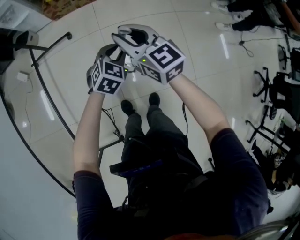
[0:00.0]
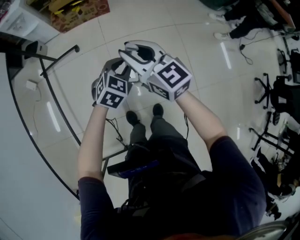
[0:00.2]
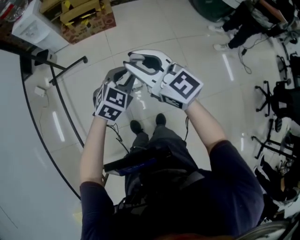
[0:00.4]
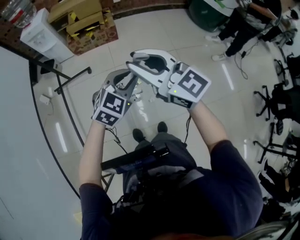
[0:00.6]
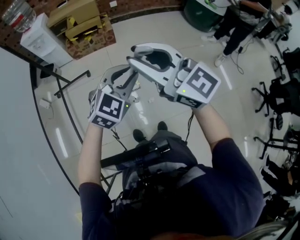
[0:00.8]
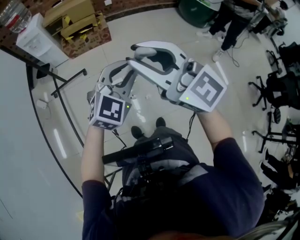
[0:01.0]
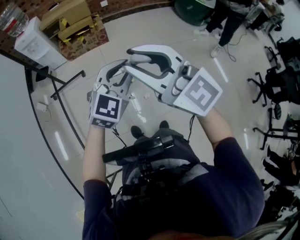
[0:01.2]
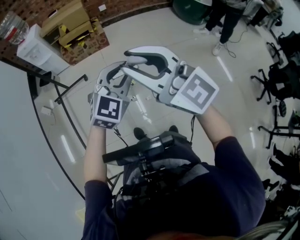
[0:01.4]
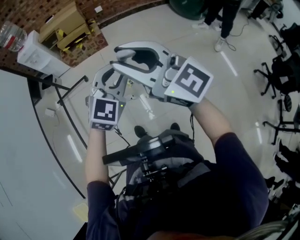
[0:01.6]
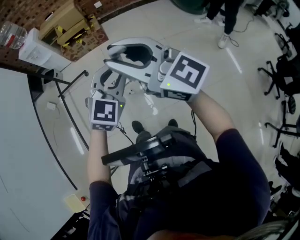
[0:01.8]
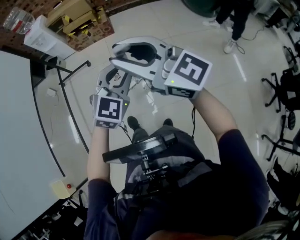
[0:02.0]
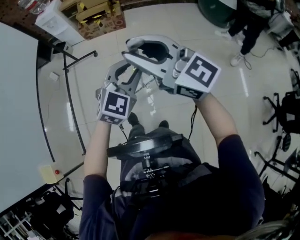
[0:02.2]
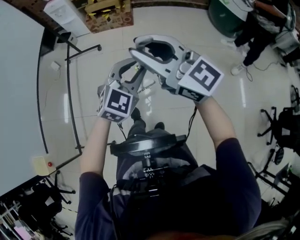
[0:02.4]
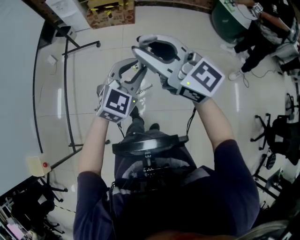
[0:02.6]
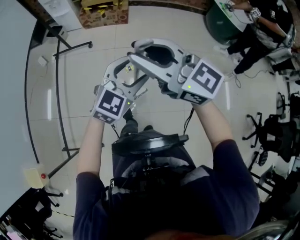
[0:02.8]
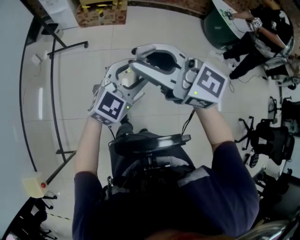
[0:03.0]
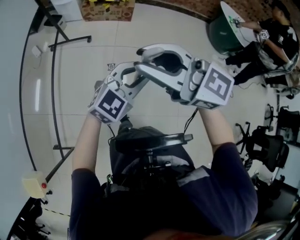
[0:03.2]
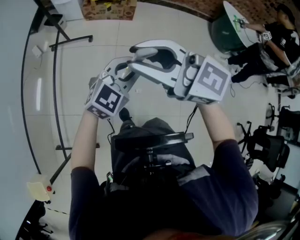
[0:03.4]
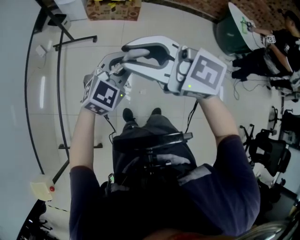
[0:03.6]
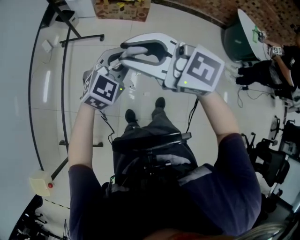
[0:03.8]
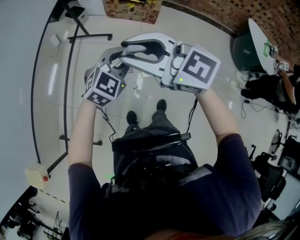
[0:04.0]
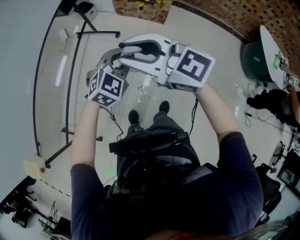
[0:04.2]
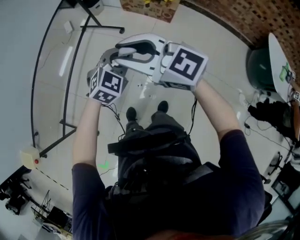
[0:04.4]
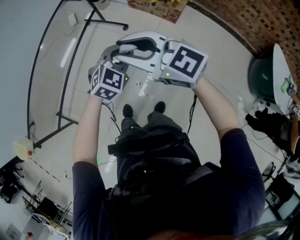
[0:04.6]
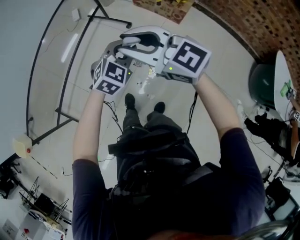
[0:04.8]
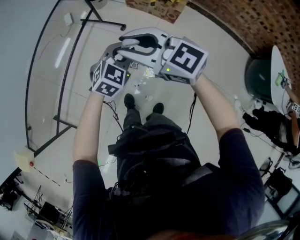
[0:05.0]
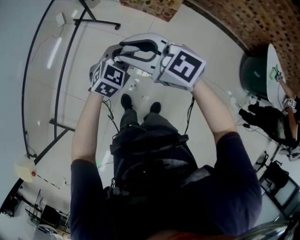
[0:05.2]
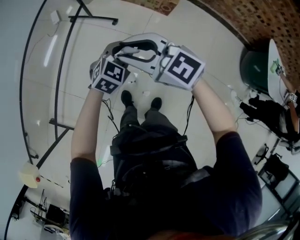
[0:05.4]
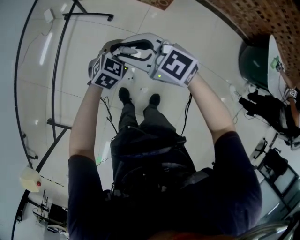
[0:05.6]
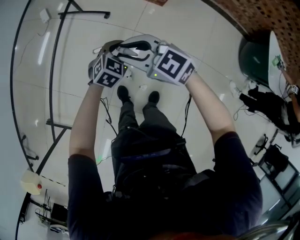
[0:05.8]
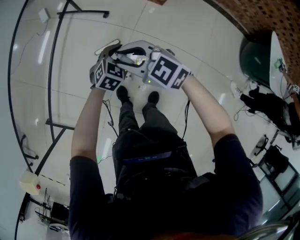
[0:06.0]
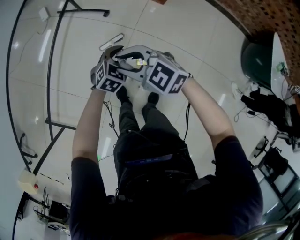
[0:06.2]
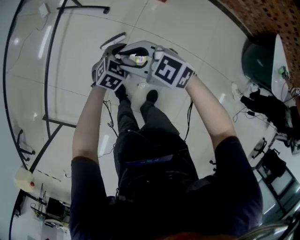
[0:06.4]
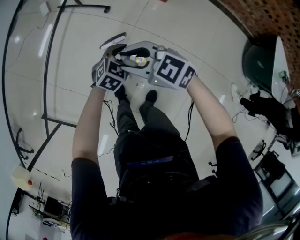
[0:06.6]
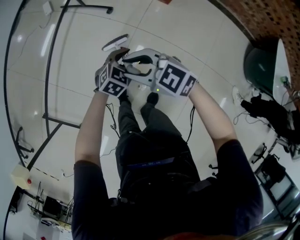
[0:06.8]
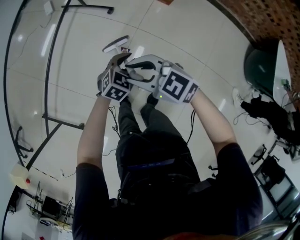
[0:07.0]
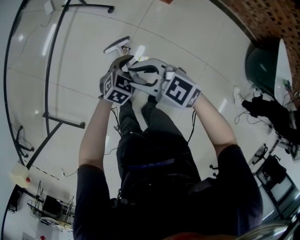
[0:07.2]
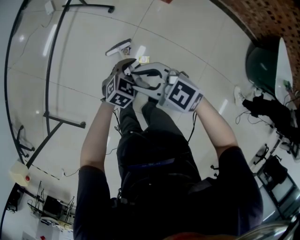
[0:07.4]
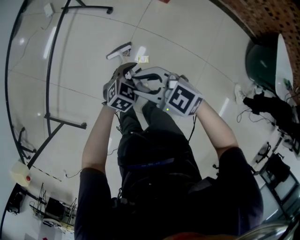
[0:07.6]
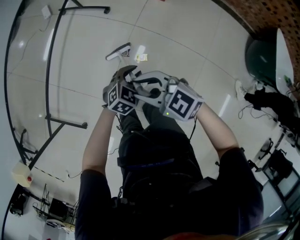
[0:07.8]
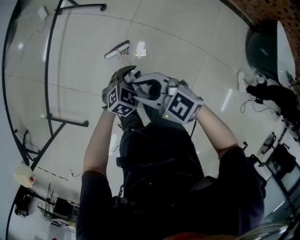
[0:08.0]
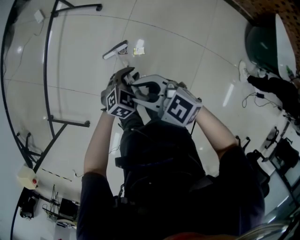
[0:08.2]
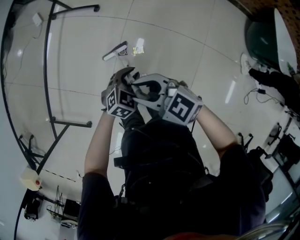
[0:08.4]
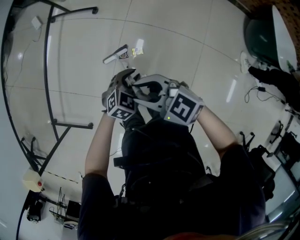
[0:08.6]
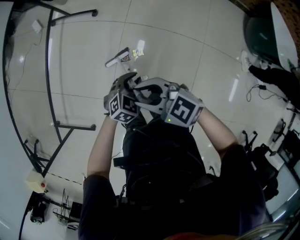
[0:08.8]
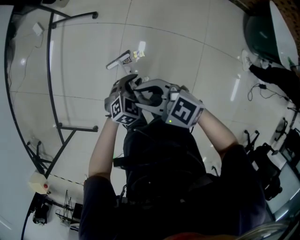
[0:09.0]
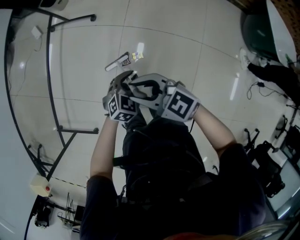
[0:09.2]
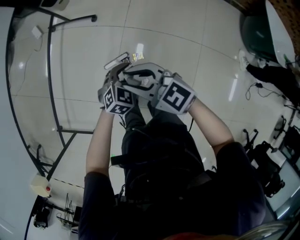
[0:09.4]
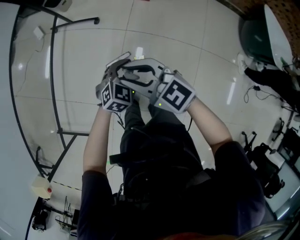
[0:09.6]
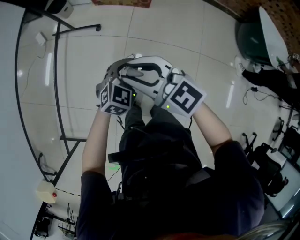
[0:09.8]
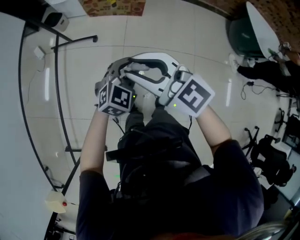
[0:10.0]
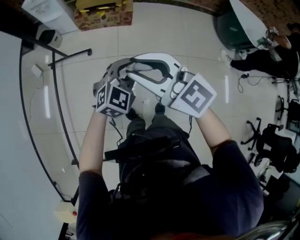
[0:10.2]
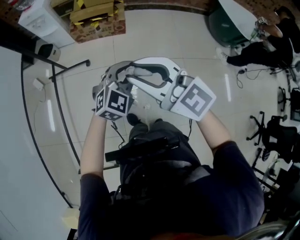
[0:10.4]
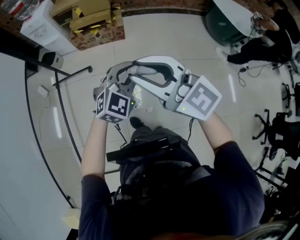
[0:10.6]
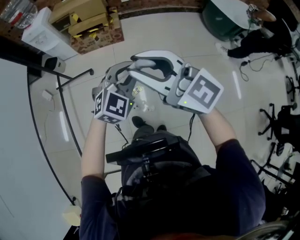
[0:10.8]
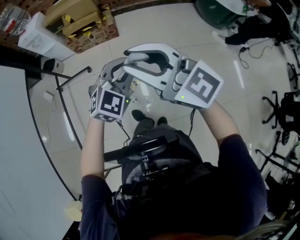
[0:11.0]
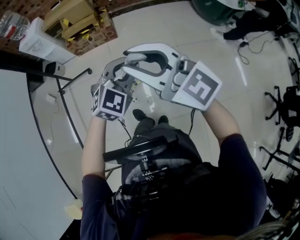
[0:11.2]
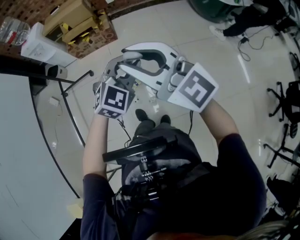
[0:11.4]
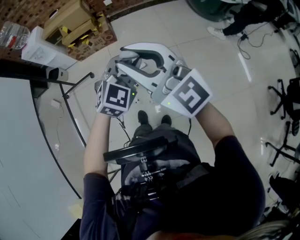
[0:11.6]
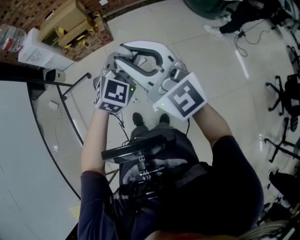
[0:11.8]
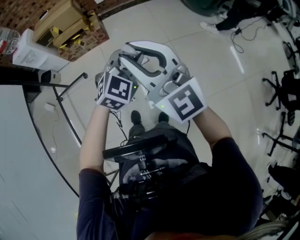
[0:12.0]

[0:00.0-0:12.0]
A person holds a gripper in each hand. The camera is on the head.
0:00.0 to 0:01.6: The grippers both shift upward and backward by about 40 cm. The right gripper changes its angle by about 30 degrees. The left gripper swivels approximately 30 degrees.
0:01.6 to 0:03.0: Both grippers move downward, roughly 5 cm. The right gripper reaches roughly 10 cm to the right, then returns, and swivels approximately 30 degrees. The left gripper travels backward and back again, approximately 10 cm each way, and opens its fingers.
0:03.0 to 0:04.4: The left gripper moves about 30 cm, rotates approximately 40 degrees, and closes its fingers, while the right gripper moves some 25 cm, and swivels roughly 30 degrees.
0:04.4 to 0:06.0: The grippers both shift downward and forward by some 25 cm. The right gripper changes its angle by roughly 20 degrees.
0:06.0 to 0:07.6: Both grippers move backward, some 15 cm.
0:07.6 to 0:09.0: The left gripper ends up about 10 cm from where it was. Meanwhile the right gripper moves about 10 cm.
0:09.0 to 0:10.4: Both grippers move upward, roughly 25 cm. The right gripper rotates roughly 40 degrees. The left gripper turns by some 30 degrees.
0:10.4 to 0:12.0: The left gripper travels to the right and backward by about 25 cm. Meanwhile the right gripper is displaced to the right, backward and upward by approximately 25 cm, and swivels approximately 40 degrees.

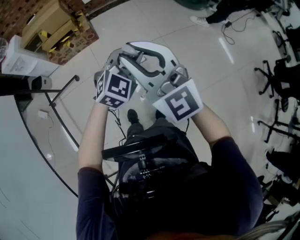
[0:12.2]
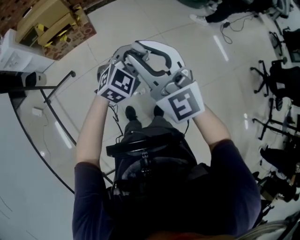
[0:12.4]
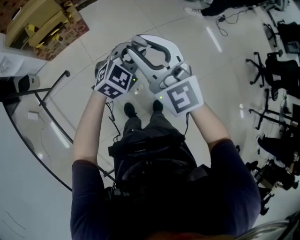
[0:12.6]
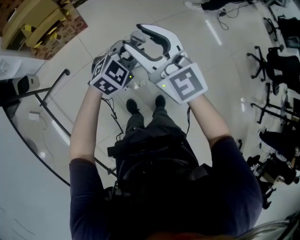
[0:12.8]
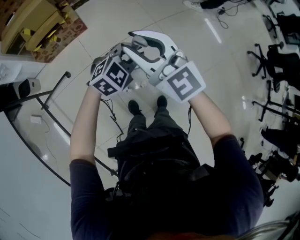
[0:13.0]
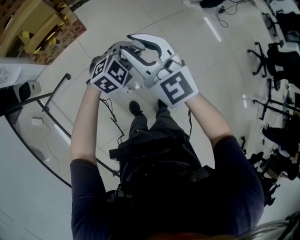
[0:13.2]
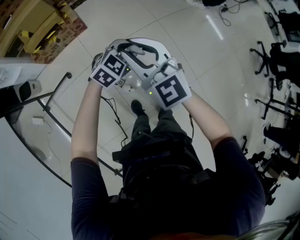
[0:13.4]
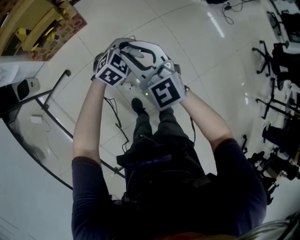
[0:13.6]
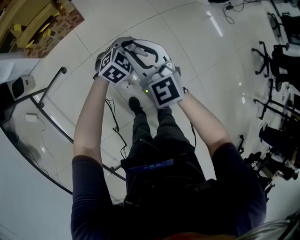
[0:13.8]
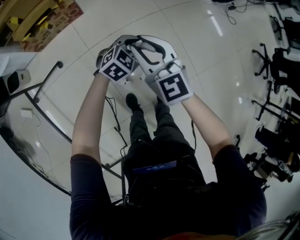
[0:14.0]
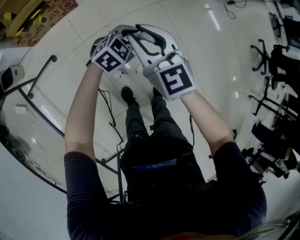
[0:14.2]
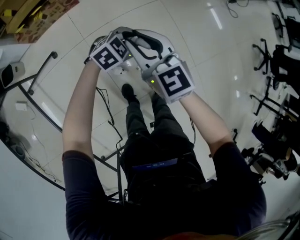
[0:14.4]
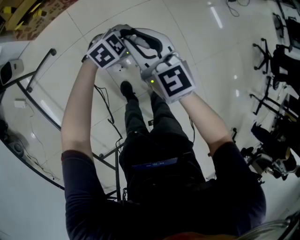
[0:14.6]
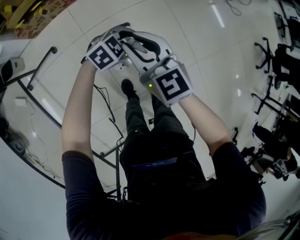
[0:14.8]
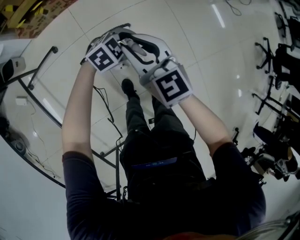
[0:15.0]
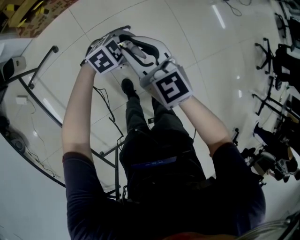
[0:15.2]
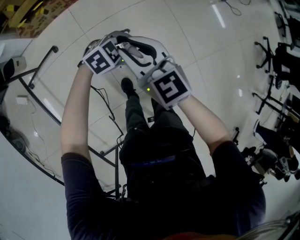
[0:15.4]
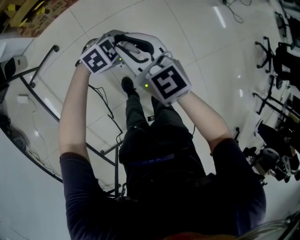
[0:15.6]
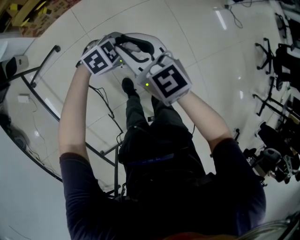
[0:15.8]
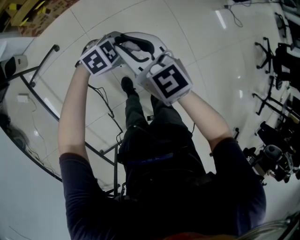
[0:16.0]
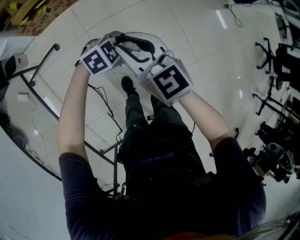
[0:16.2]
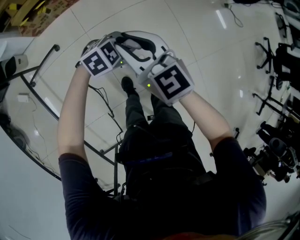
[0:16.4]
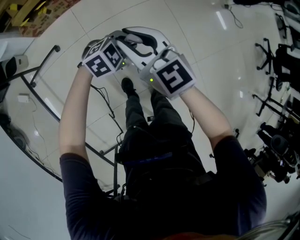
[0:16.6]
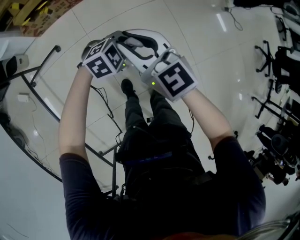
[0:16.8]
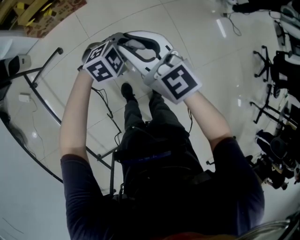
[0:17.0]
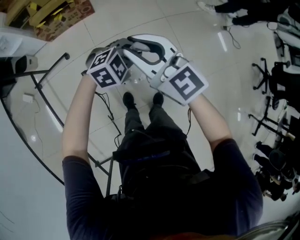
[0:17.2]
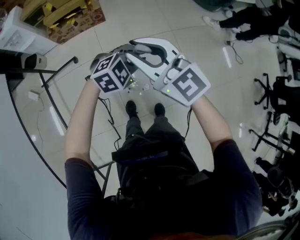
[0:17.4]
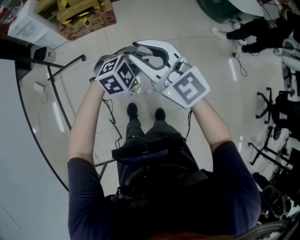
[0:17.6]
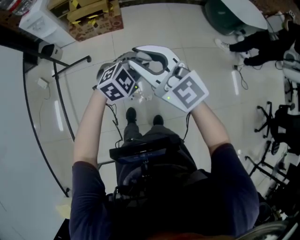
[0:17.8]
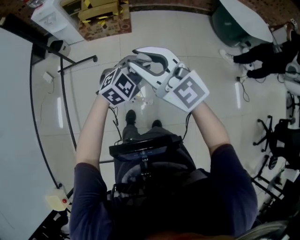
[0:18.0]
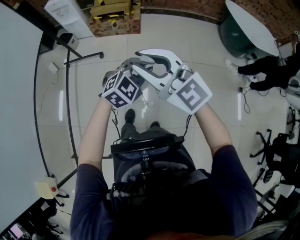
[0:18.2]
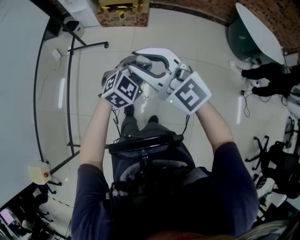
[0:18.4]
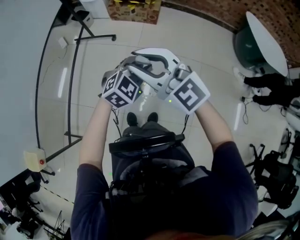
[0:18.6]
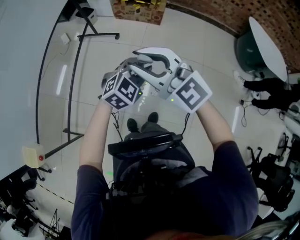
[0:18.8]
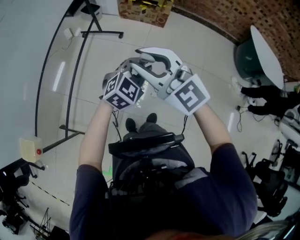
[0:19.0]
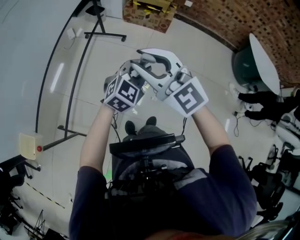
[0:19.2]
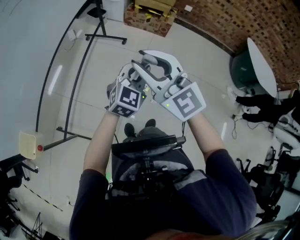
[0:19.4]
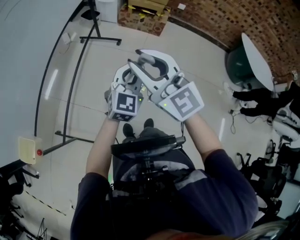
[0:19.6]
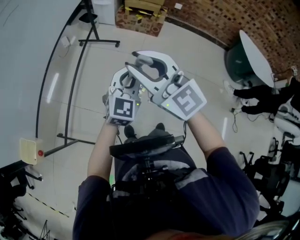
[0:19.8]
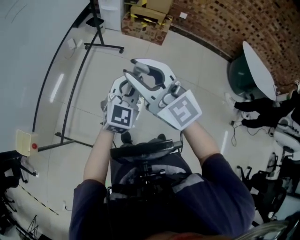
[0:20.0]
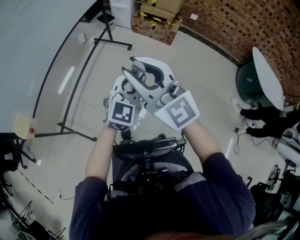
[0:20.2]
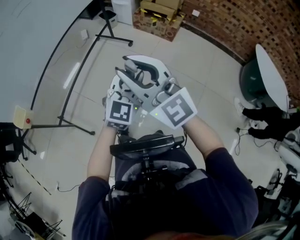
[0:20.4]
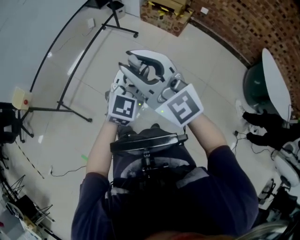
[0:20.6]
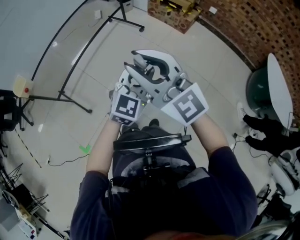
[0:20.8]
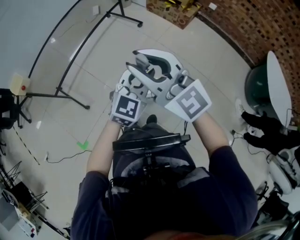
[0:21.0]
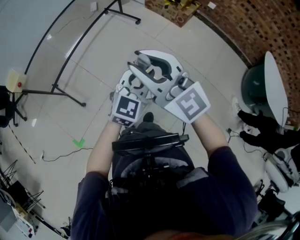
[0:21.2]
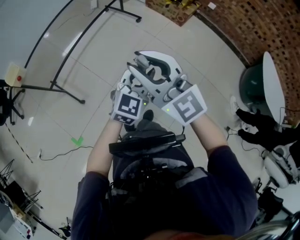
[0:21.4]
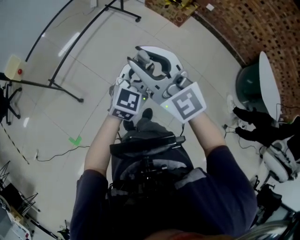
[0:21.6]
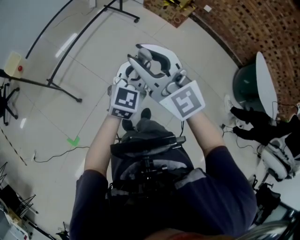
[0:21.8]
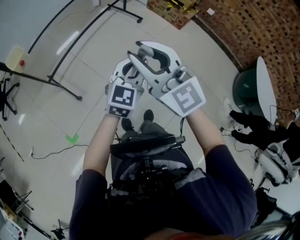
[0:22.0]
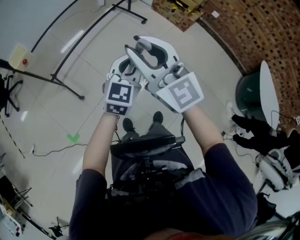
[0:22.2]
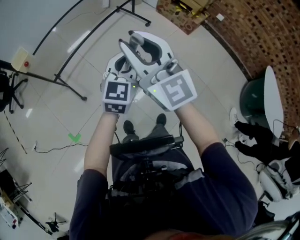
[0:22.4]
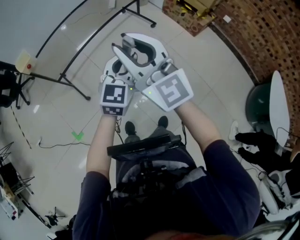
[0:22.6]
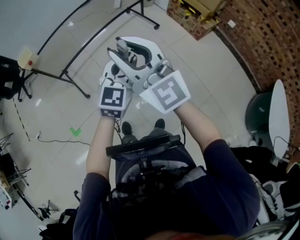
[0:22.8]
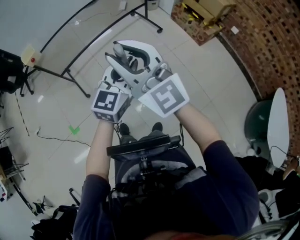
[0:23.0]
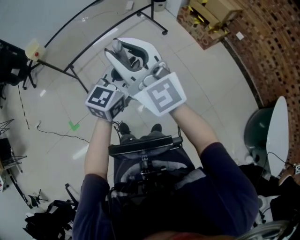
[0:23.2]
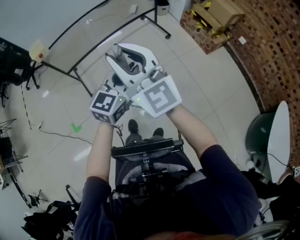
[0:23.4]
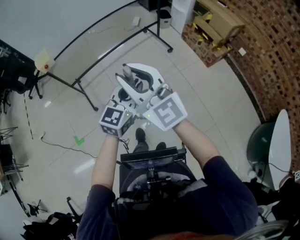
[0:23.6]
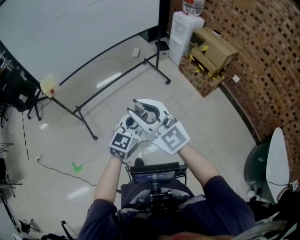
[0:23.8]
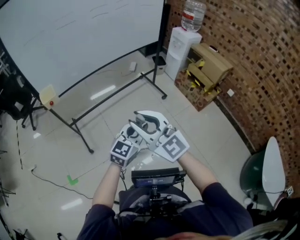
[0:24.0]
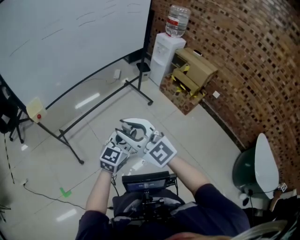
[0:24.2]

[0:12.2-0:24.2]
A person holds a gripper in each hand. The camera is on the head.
0:12.2 to 0:13.8: The right gripper moves downward and to the left, roughly 30 cm, changes its angle by roughly 30 degrees, and opens, then closes once more. The left gripper is displaced downward by approximately 25 cm, and rotates approximately 20 degrees.
0:13.8 to 0:15.2: The two grippers go approximately 10 cm backward.
0:15.2 to 0:16.6: The grippers stay close to where they were, moving slightly.
0:16.6 to 0:18.2: Both grippers move upward, some 25 cm. The left gripper swivels approximately 40 degrees. Meanwhile the right gripper changes its angle by about 50 degrees.
0:18.2 to 0:19.8: The right gripper is displaced to the left and backward by about 25 cm. Meanwhile the left gripper travels to the left by approximately 25 cm, and changes its angle by approximately 50 degrees.
0:19.8 to 0:21.2: The left gripper travels to the right and backward by some 20 cm, while the right gripper travels backward and to the right by approximately 20 cm, and rotates about 20 degrees.
0:21.2 to 0:22.6: The left gripper heads to the left and forward, covering about 10 cm, and rotates approximately 20 degrees; the right gripper shifts some 5 cm to the left.
0:22.6 to 0:24.2: The right gripper heads to the left, covering some 5 cm, and turns by roughly 20 degrees. Meanwhile the left gripper reaches roughly 5 cm to the right, then returns.
